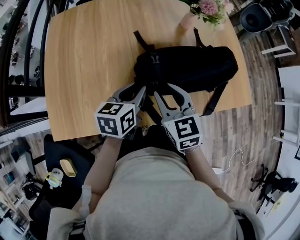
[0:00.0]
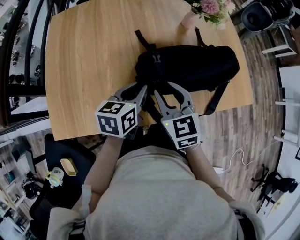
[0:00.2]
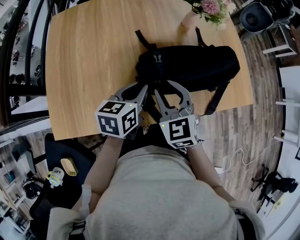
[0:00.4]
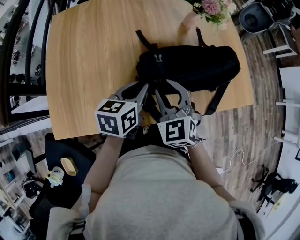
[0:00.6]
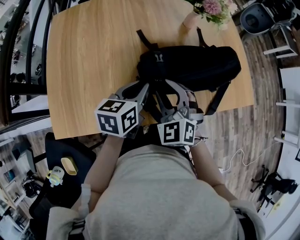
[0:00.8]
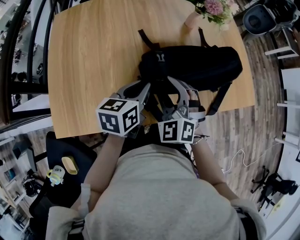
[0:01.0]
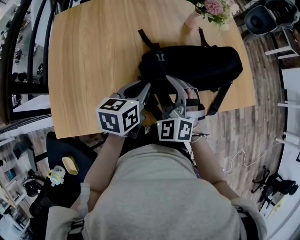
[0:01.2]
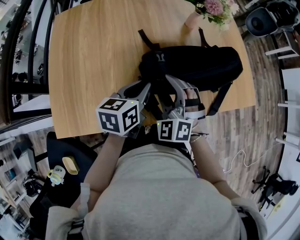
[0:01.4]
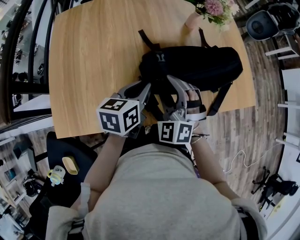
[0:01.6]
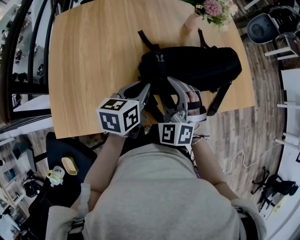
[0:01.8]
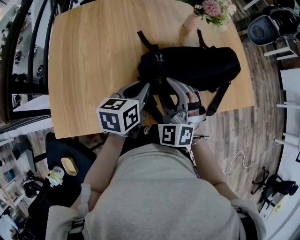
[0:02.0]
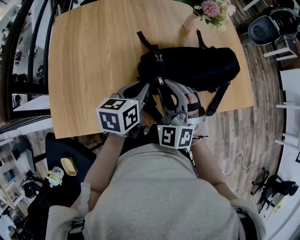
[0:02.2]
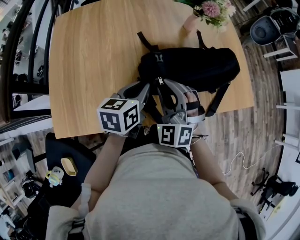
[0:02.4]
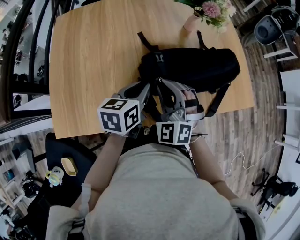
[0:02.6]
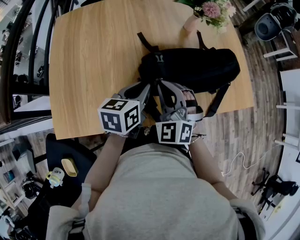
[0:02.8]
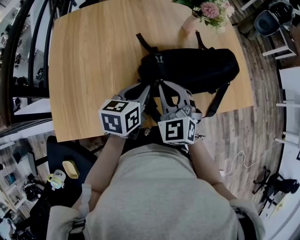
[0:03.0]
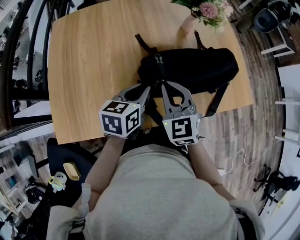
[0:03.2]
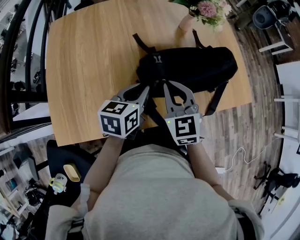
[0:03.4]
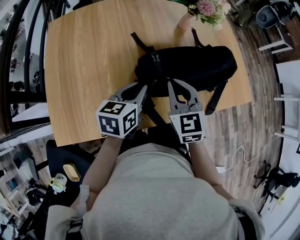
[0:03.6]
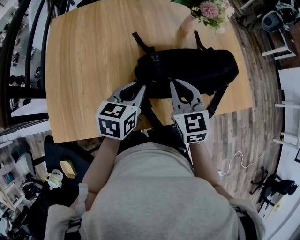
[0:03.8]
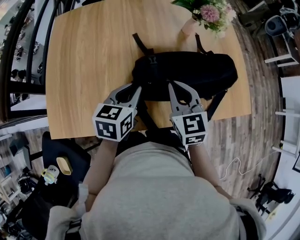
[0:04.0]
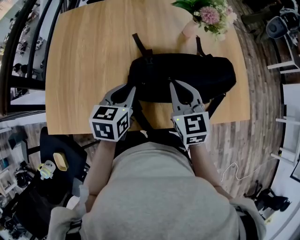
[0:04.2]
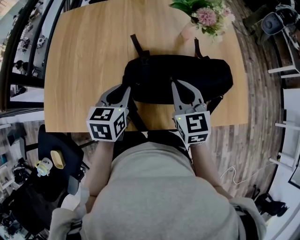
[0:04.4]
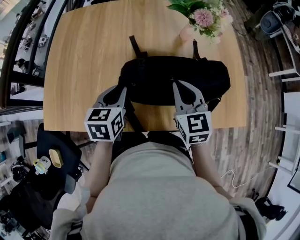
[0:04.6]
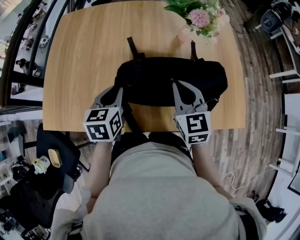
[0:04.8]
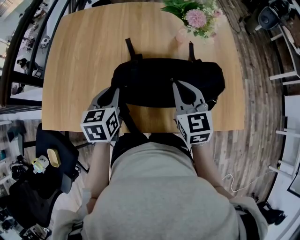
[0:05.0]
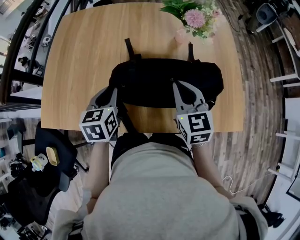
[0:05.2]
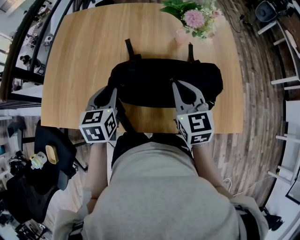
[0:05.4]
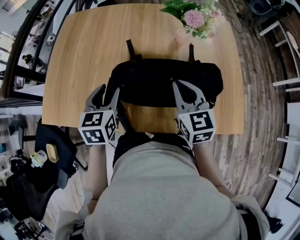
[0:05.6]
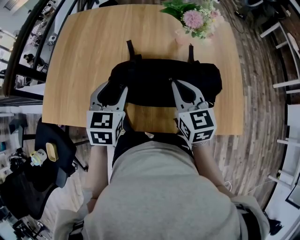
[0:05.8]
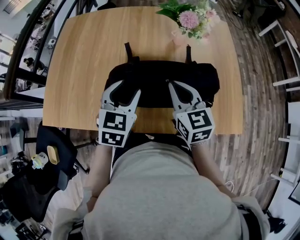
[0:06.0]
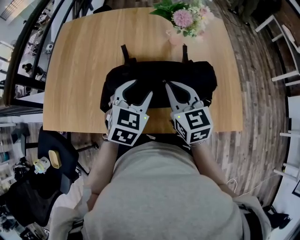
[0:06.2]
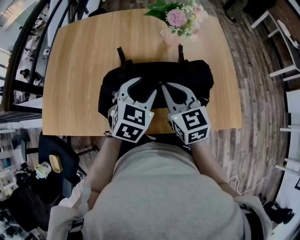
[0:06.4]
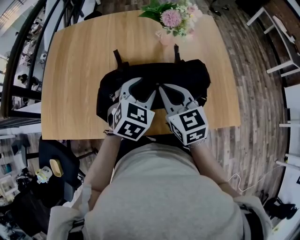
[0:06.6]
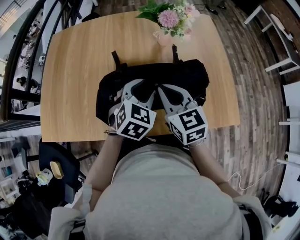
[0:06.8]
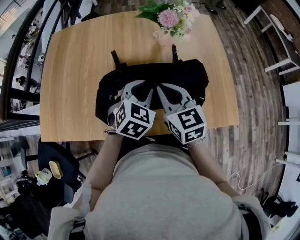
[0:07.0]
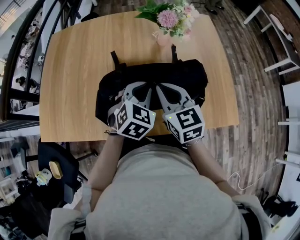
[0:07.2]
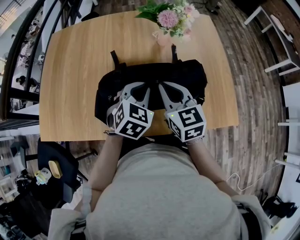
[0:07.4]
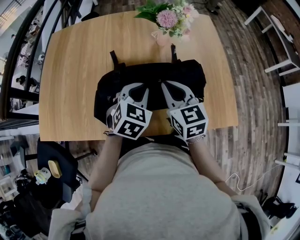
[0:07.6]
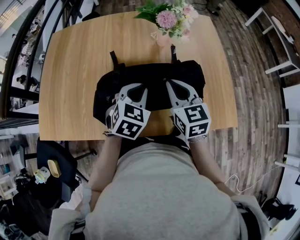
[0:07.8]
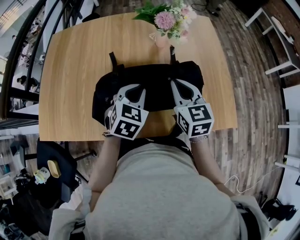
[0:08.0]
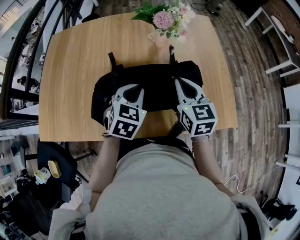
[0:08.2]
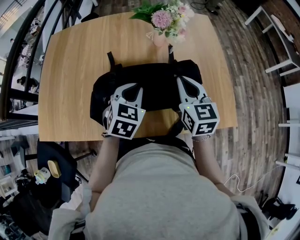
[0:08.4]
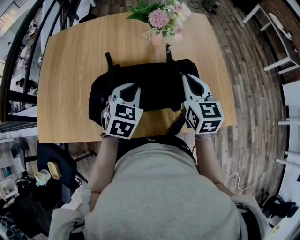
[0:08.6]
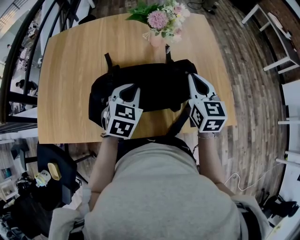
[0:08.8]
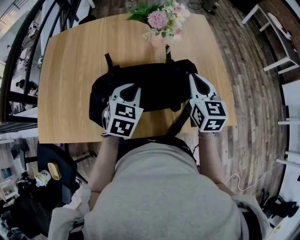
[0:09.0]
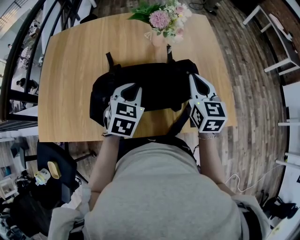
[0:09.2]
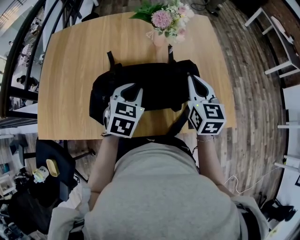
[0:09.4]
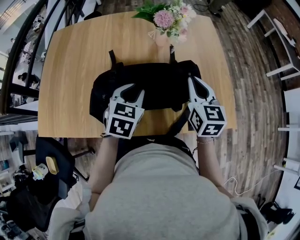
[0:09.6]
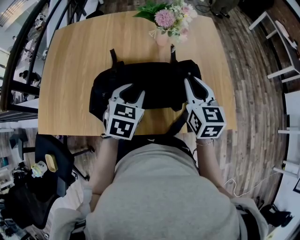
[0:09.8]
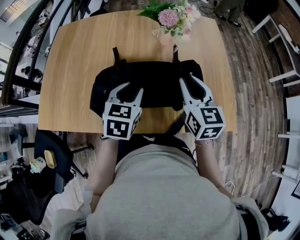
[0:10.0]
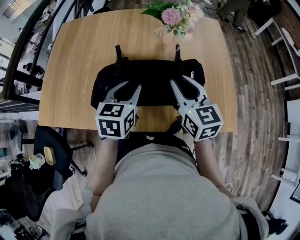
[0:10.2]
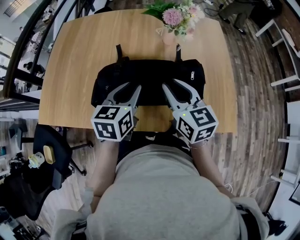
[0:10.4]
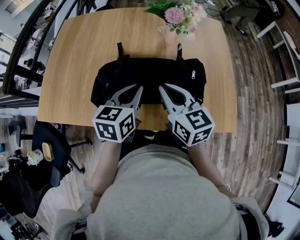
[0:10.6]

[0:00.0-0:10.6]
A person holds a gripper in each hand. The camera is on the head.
0:00.0 to 0:01.6: The right gripper rotates around the line of its fingers by about 50 degrees, counterclockwise from behind.
0:01.6 to 0:03.0: The right gripper rotates roughly 20 degrees, and closes its fingers.
0:03.0 to 0:04.6: The left gripper swivels approximately 20 degrees, while the right gripper shifts about 15 cm to the right and forward, and rotates about 20 degrees.
0:04.6 to 0:06.0: The left gripper goes about 10 cm to the right and upward, turns by about 20 degrees, and opens.
0:06.0 to 0:07.6: The left gripper shifts some 10 cm to the right, and closes up.
0:07.6 to 0:09.0: The right gripper shifts some 15 cm to the right.
0:09.0 to 0:10.6: The right gripper moves to the left and backward, roughly 15 cm, rotates about 30 degrees, and opens, then closes again, while the left gripper moves roughly 5 cm, turns by approximately 30 degrees, and opens, then closes once more.

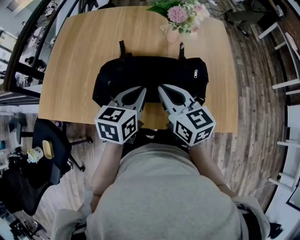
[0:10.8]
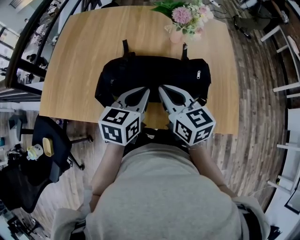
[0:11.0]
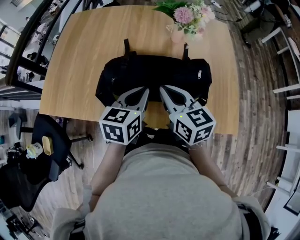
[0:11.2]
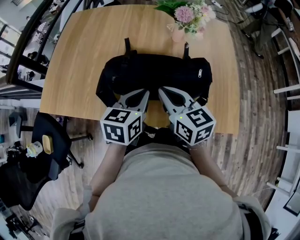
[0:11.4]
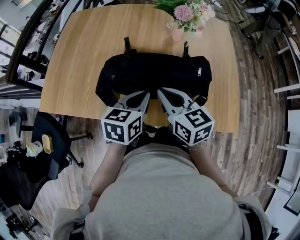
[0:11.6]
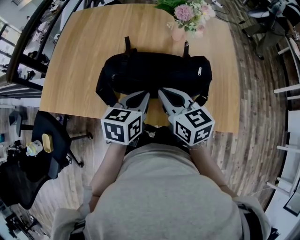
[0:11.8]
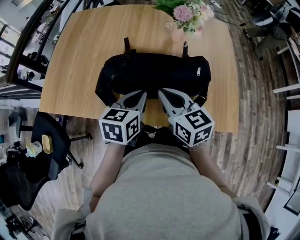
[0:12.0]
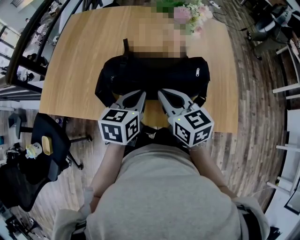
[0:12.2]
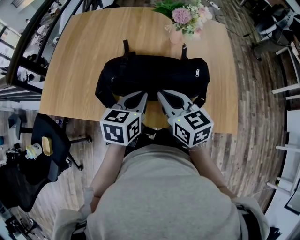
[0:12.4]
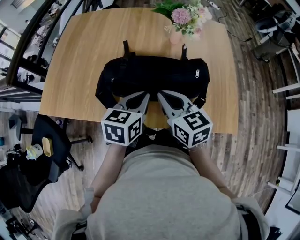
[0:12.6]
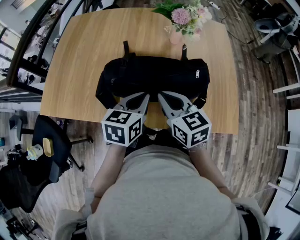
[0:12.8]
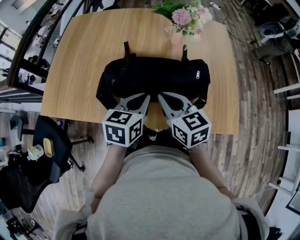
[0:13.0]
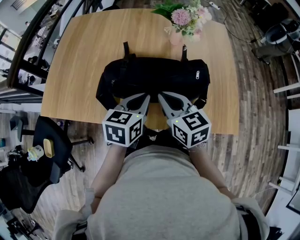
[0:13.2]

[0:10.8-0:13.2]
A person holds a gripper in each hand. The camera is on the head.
0:10.8 to 0:12.0: The grippers make only small movements.
0:12.0 to 0:13.2: Both grippers stay put.

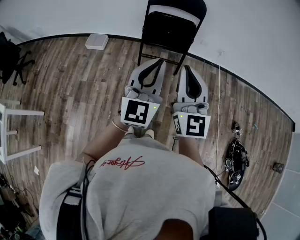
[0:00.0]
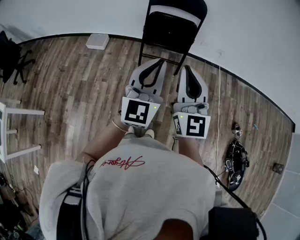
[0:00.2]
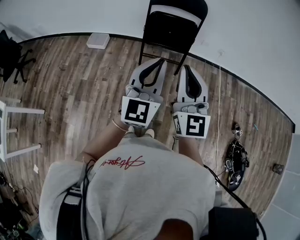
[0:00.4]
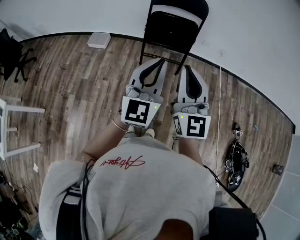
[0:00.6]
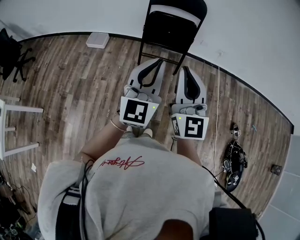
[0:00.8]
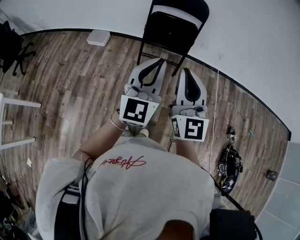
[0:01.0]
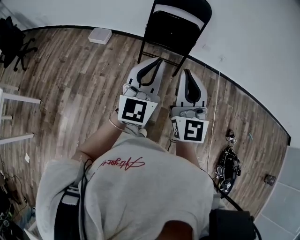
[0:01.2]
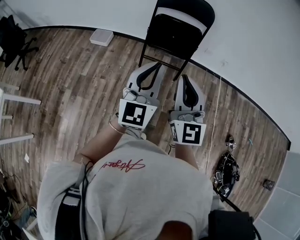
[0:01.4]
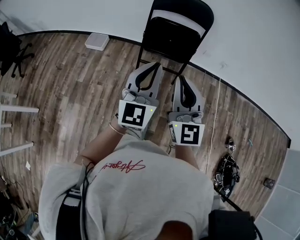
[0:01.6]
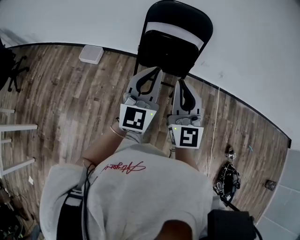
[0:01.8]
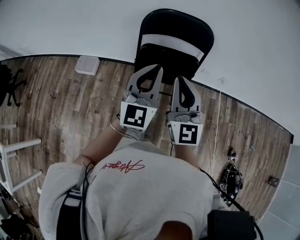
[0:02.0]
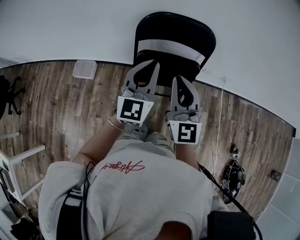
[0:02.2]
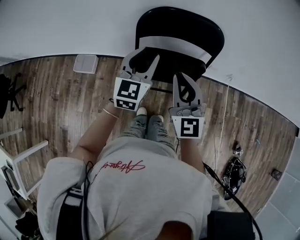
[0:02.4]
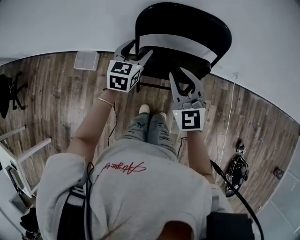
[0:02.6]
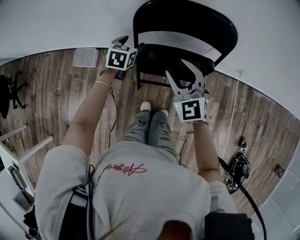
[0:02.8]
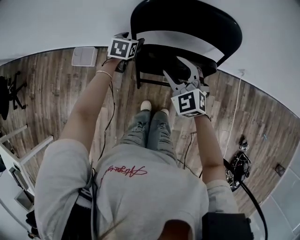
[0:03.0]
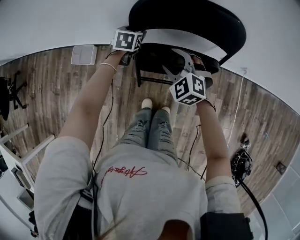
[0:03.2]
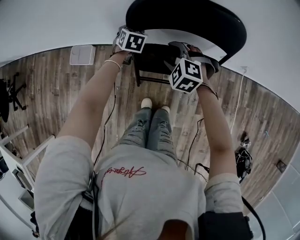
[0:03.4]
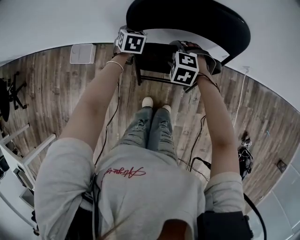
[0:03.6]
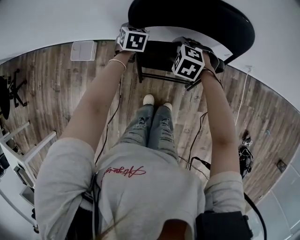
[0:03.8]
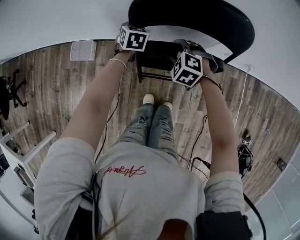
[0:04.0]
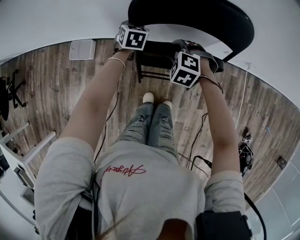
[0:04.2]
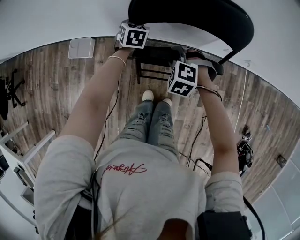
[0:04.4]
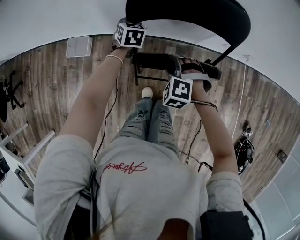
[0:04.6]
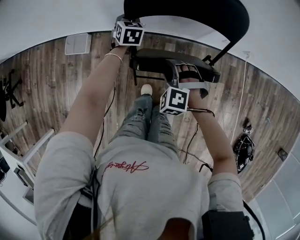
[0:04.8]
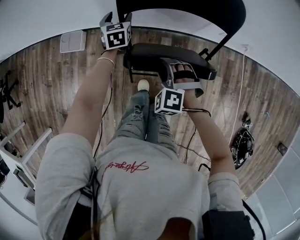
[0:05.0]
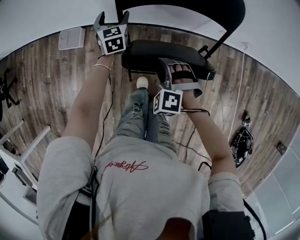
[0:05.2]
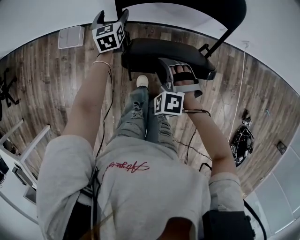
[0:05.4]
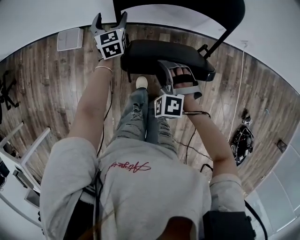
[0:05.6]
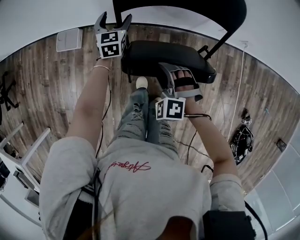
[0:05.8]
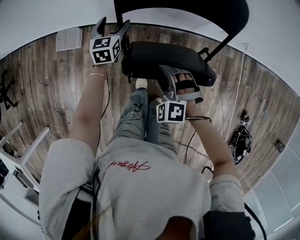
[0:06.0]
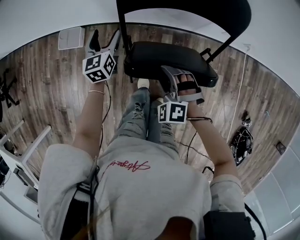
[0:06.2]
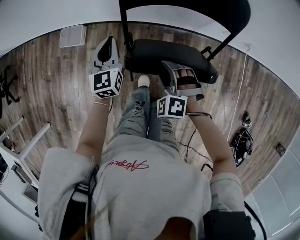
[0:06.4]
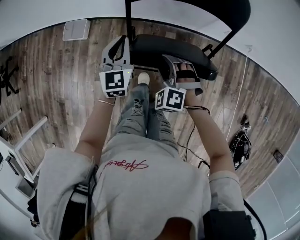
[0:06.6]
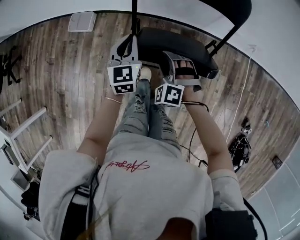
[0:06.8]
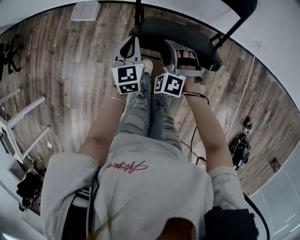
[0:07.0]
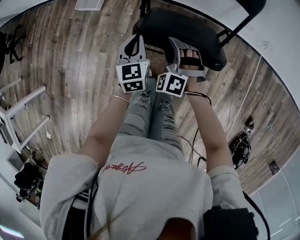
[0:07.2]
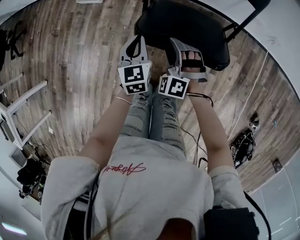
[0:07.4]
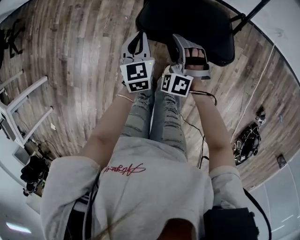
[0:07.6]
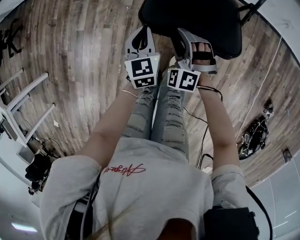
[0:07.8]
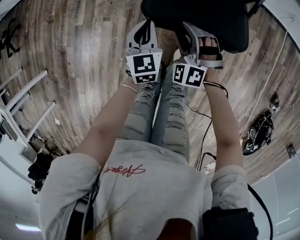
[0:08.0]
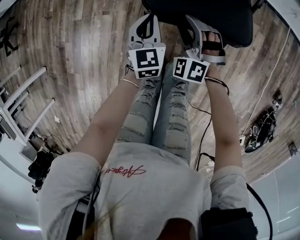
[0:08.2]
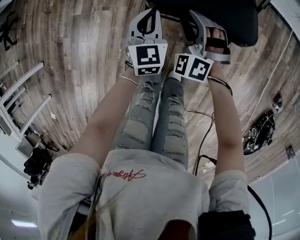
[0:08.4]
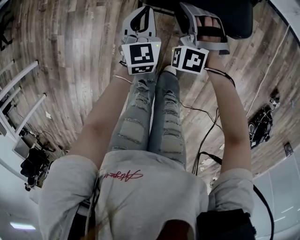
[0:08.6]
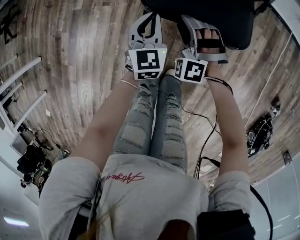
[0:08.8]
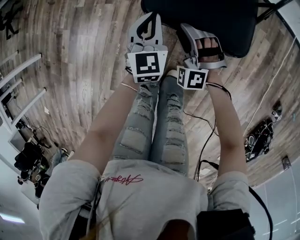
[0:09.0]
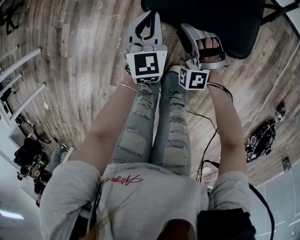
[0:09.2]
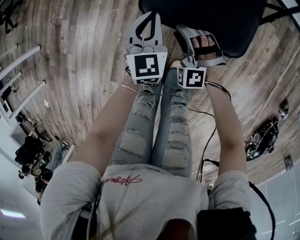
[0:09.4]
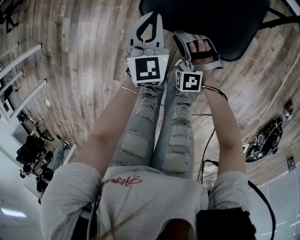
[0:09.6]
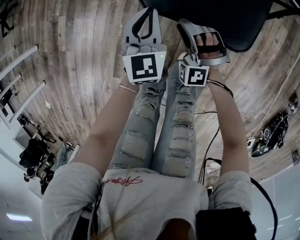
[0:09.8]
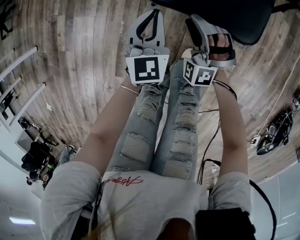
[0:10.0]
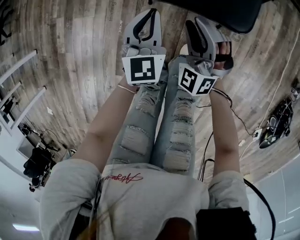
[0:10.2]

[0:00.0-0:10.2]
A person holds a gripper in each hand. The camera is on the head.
0:00.0 to 0:01.4: The grippers move only a little.
0:01.4 to 0:03.0: The two grippers travel together, forward, roughly 60 cm. The grippers both shift downward by approximately 30 cm. The right gripper angles its fingers downward, by roughly 40 degrees, and opens its fingers; the left gripper tips its fingers downward by some 60 degrees, and opens its fingers.
0:03.0 to 0:04.4: The right gripper travels downward by approximately 10 cm, and tilts its fingers about 40 degrees downward, while the left gripper closes.
0:04.4 to 0:05.8: The left gripper shifts about 5 cm backward, changes its angle by some 20 degrees, and opens its fingers. The right gripper shifts some 15 cm backward.
0:05.8 to 0:07.2: The left gripper shifts some 30 cm backward, and closes its fingers. Meanwhile the right gripper is displaced backward by about 10 cm.
0:07.2 to 0:08.8: The two grippers go approximately 25 cm backward and downward.
0:08.8 to 0:10.2: The right gripper goes some 15 cm backward, and changes its angle by approximately 30 degrees. The left gripper travels backward and to the left by some 15 cm.
